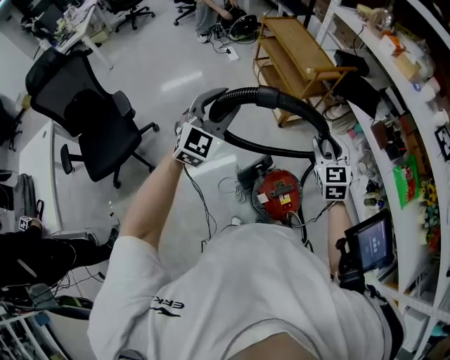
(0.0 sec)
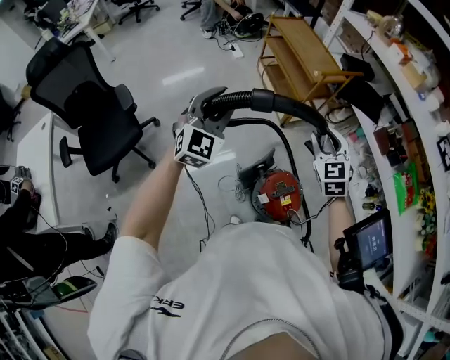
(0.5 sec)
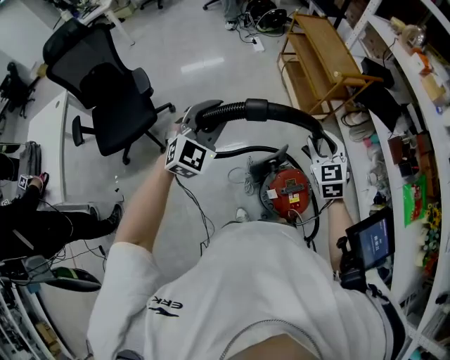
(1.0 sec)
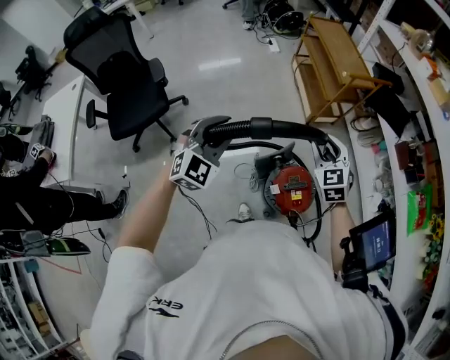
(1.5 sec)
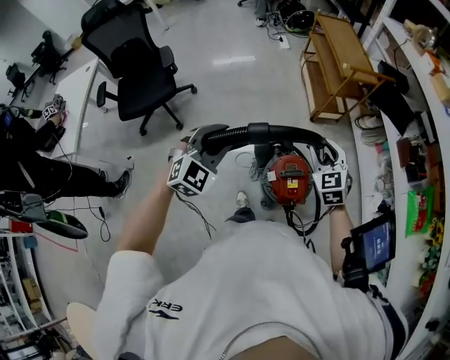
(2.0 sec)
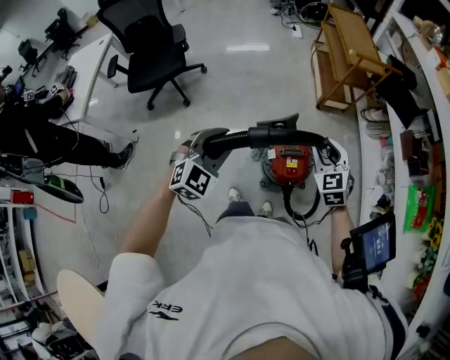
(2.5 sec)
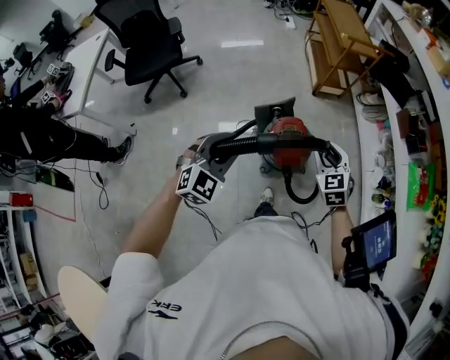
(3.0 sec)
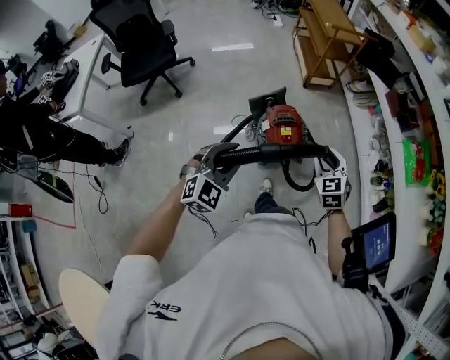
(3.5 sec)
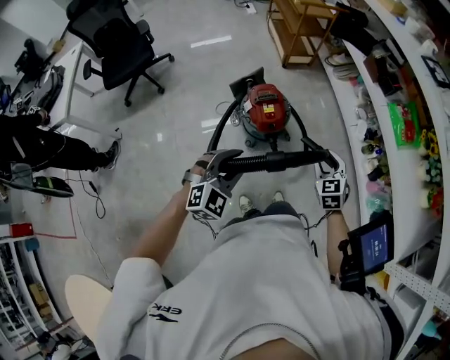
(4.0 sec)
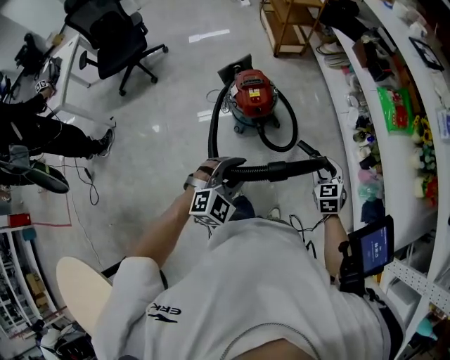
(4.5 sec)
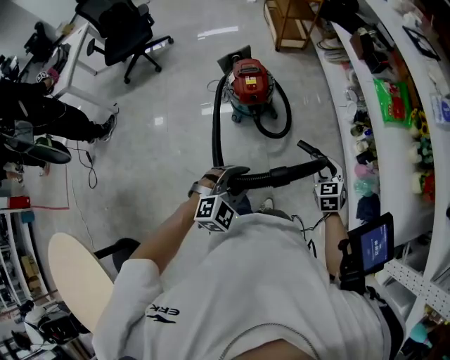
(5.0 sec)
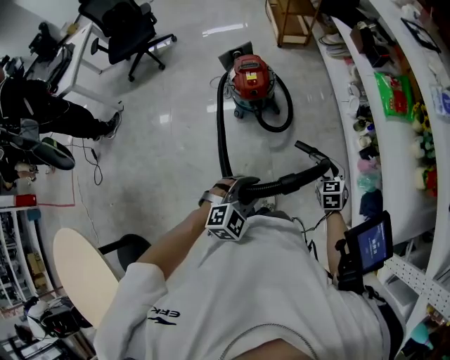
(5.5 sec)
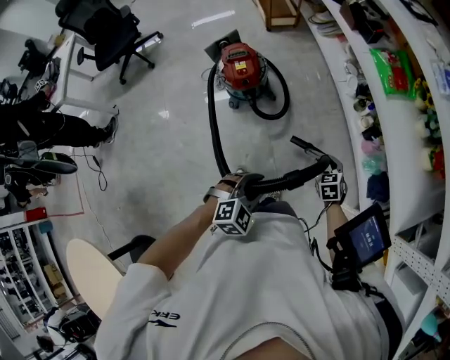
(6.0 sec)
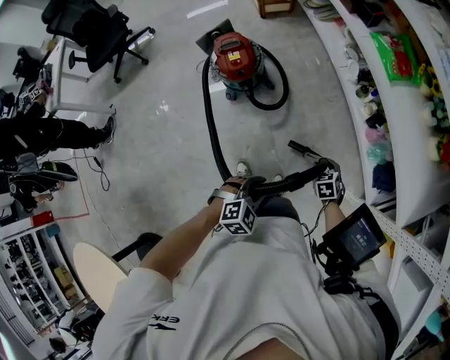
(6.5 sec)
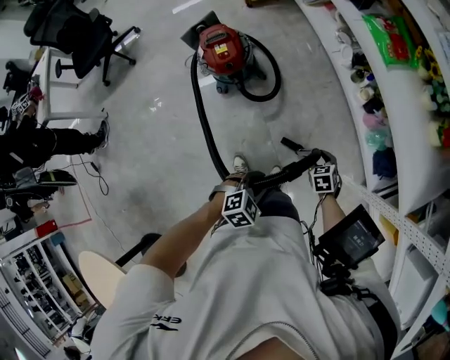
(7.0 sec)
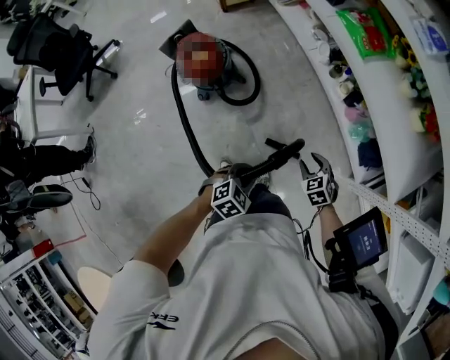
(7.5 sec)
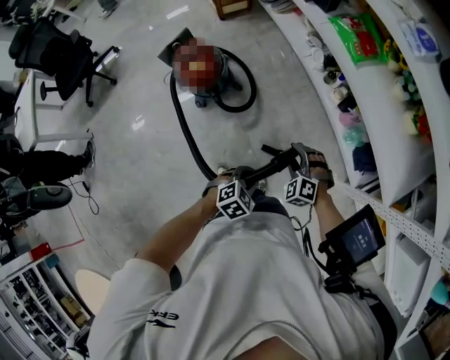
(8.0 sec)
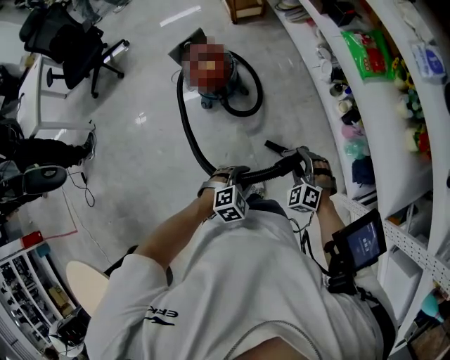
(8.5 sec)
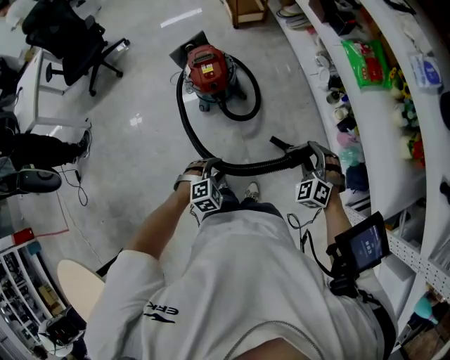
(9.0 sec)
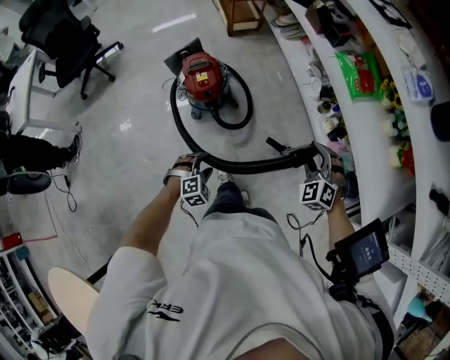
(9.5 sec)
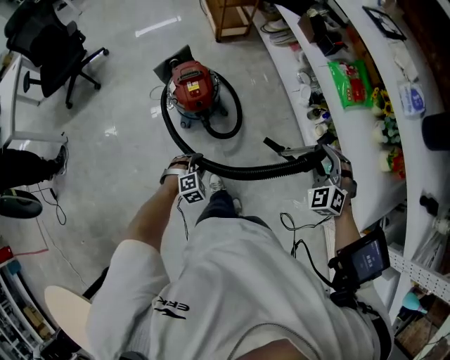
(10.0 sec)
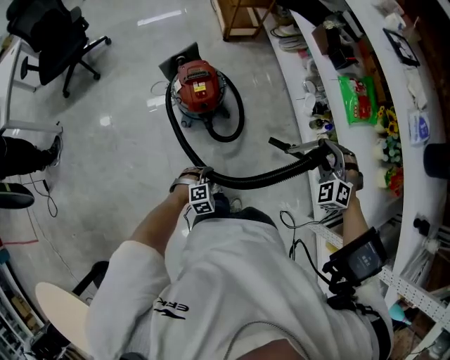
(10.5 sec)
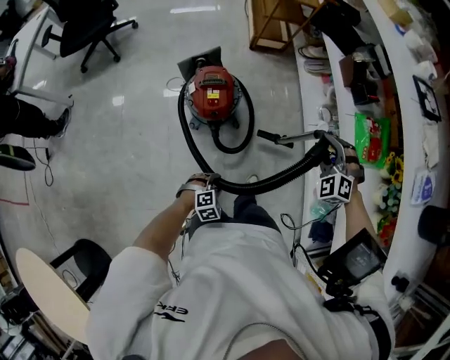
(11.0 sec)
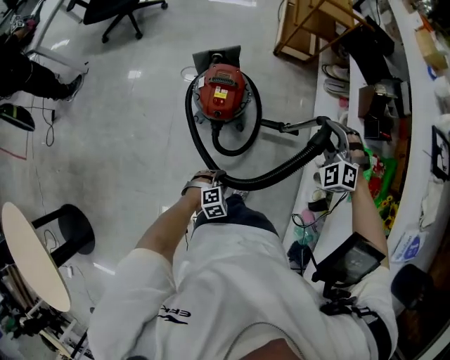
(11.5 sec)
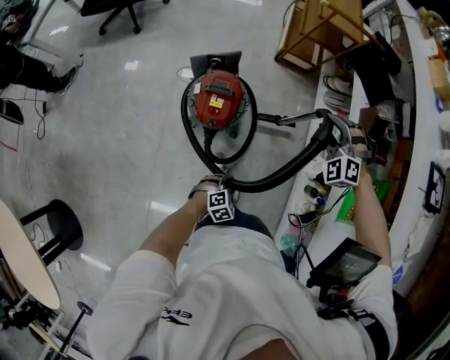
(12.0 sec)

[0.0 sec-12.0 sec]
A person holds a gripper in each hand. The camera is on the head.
0.0 sec to 2.0 sec: The right gripper moves backward and downward, roughly 10 cm, and swivels roughly 20 degrees; the left gripper heads backward, covering roughly 20 cm, and swivels roughly 20 degrees.
2.0 sec to 4.0 sec: Both grippers are carried backward and to the right, roughly 40 cm.
4.0 sec to 6.0 sec: The left gripper goes approximately 35 cm to the right and backward, and rotates approximately 20 degrees, while the right gripper is displaced to the right, downward and backward by about 35 cm.
6.0 sec to 8.0 sec: The right gripper reaches about 10 cm downward, then returns, and twists roughly 40 degrees counterclockwise, seen from behind. Meanwhile the left gripper shifts roughly 10 cm downward, and changes its angle by approximately 20 degrees.
8.0 sec to 10.0 sec: The left gripper moves to the left and forward, some 25 cm, and swivels about 20 degrees. The right gripper moves upward and forward, approximately 20 cm.
10.0 sec to 12.0 sec: The right gripper shifts about 50 cm forward and to the left, and turns by about 50 degrees, while the left gripper heads forward and to the right, covering about 25 cm, and swivels roughly 40 degrees.

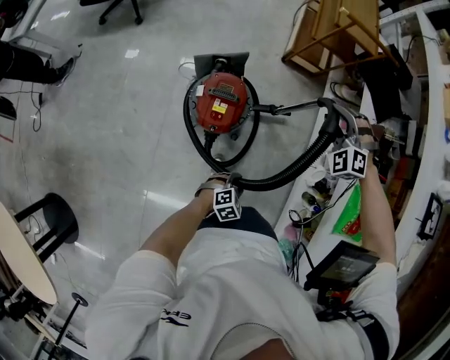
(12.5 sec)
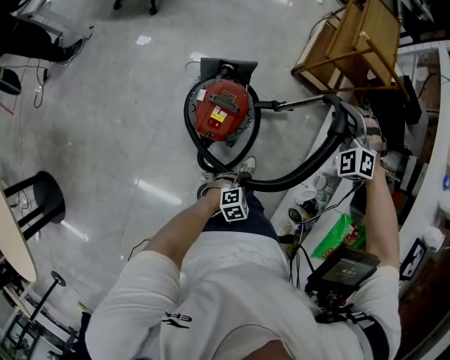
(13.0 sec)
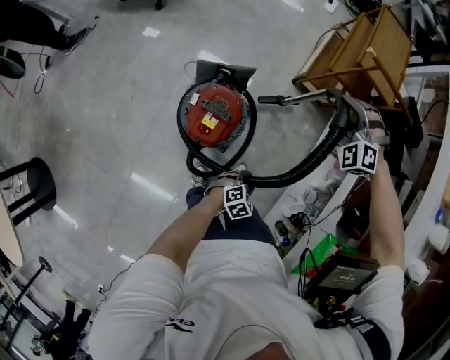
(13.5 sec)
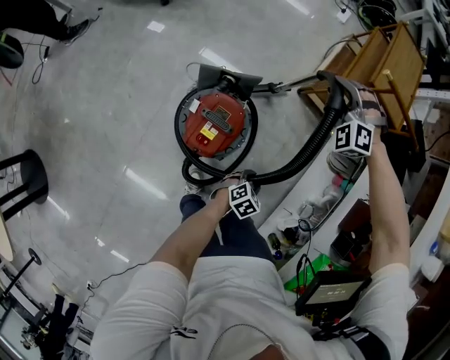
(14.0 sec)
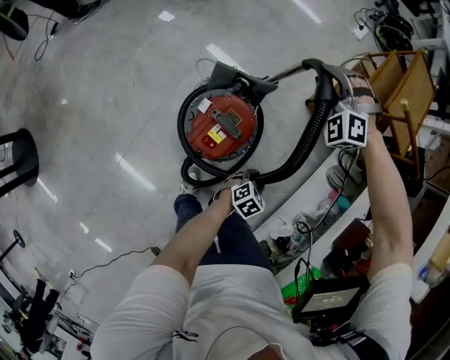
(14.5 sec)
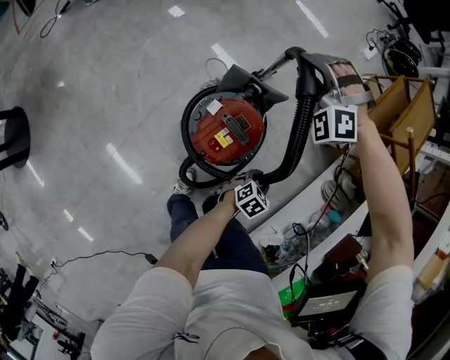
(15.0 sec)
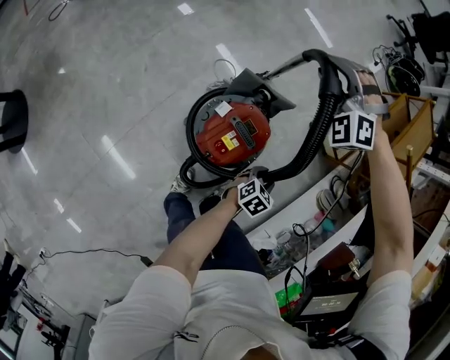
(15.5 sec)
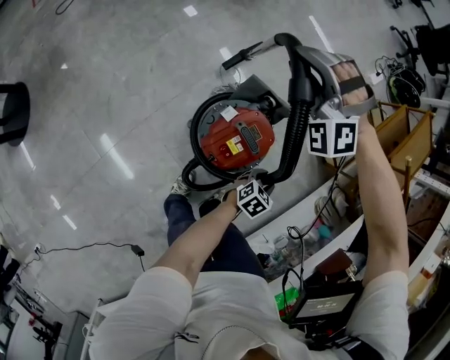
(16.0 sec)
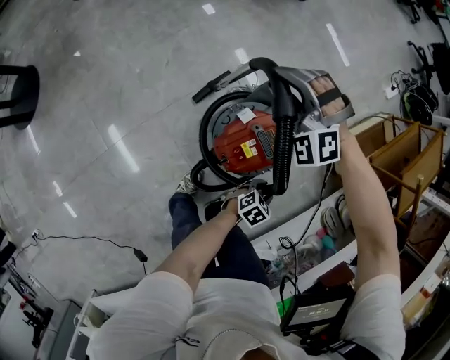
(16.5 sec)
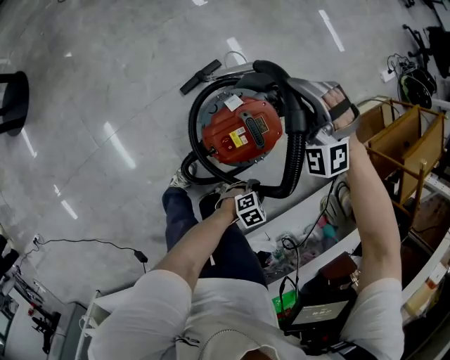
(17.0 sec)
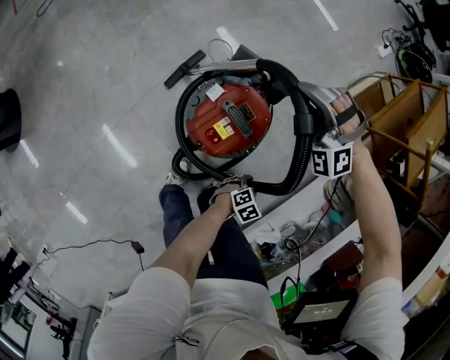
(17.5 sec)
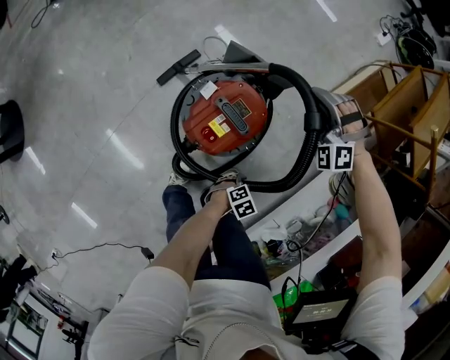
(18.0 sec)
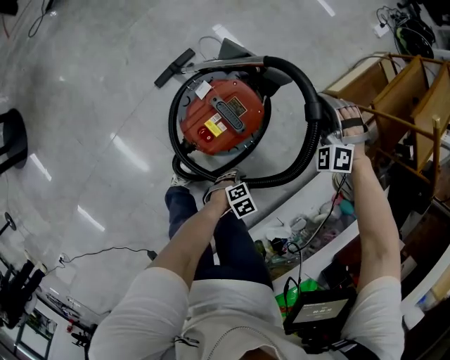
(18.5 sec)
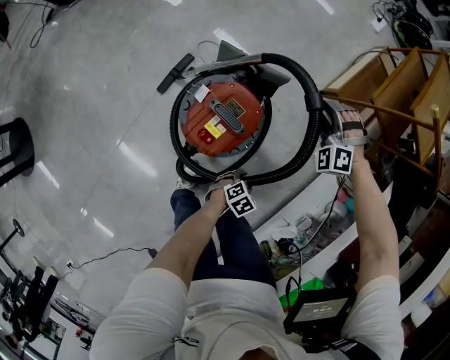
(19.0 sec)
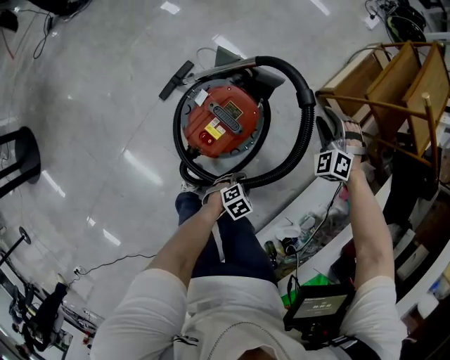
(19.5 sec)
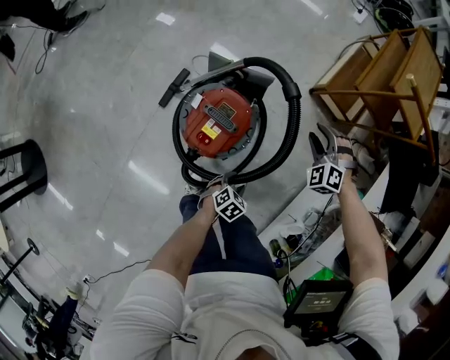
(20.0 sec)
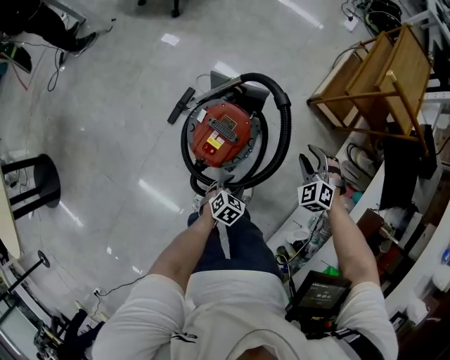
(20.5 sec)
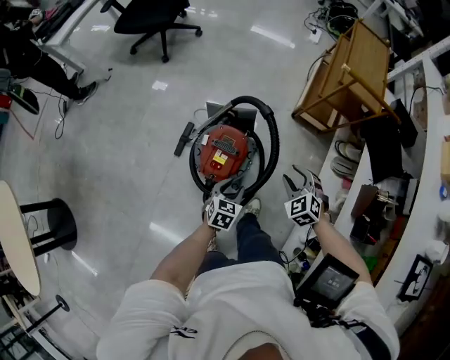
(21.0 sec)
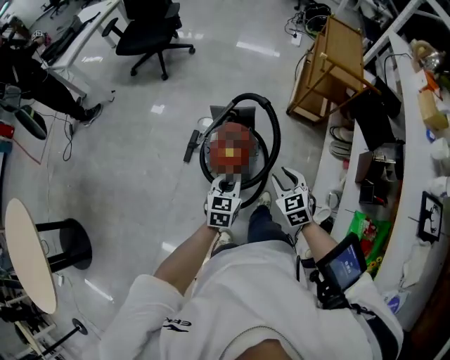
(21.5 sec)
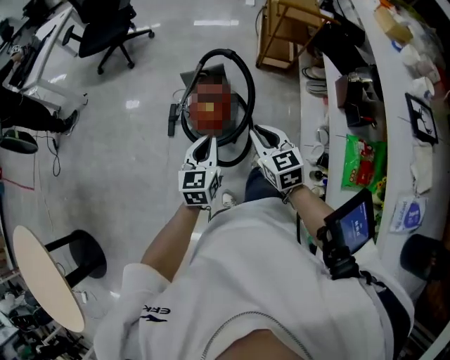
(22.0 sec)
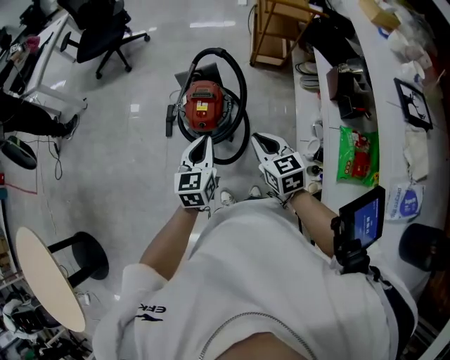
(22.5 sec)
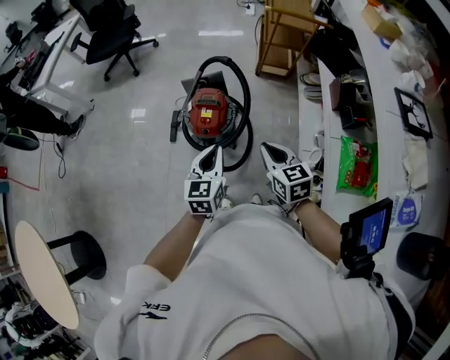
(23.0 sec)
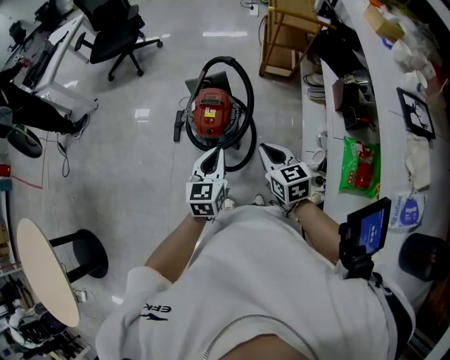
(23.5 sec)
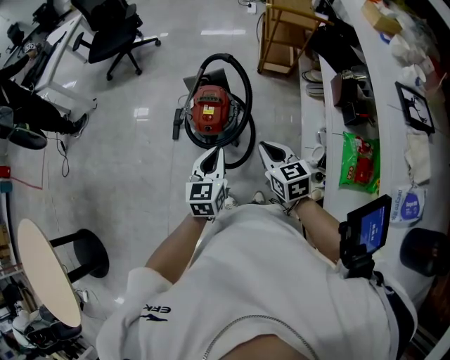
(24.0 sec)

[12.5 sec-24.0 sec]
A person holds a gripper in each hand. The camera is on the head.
12.5 sec to 14.5 sec: The left gripper heads forward, covering about 25 cm, and rotates about 40 degrees, while the right gripper heads to the left and forward, covering some 35 cm, and turns by some 30 degrees.
14.5 sec to 16.5 sec: The left gripper shifts by some 10 cm, and swivels approximately 20 degrees, while the right gripper goes upward and returns, roughly 5 cm each way, and turns by some 40 degrees.
16.5 sec to 18.5 sec: The left gripper changes place by some 20 cm, and rotates some 30 degrees, while the right gripper changes place by approximately 40 cm, and rotates about 30 degrees.
18.5 sec to 20.0 sec: The right gripper moves to the right, some 15 cm, and turns by roughly 30 degrees, while the left gripper travels upward by about 5 cm.
20.0 sec to 22.0 sec: The right gripper travels backward and upward by some 50 cm, twists some 80 degrees clockwise, seen from behind, and closes up. The left gripper shifts approximately 50 cm upward, angles its fingers upward, by about 40 degrees, and closes up.
22.0 sec to 24.0 sec: The two grippers go some 10 cm backward.

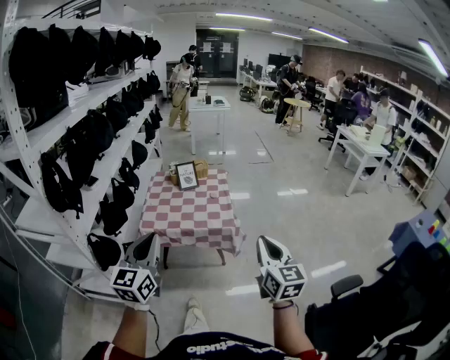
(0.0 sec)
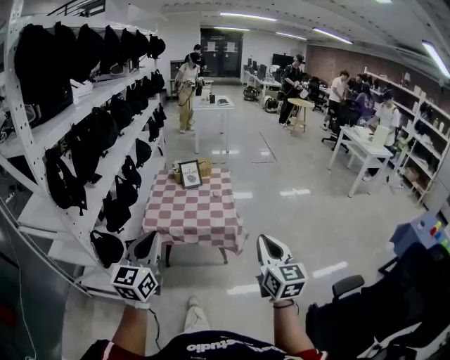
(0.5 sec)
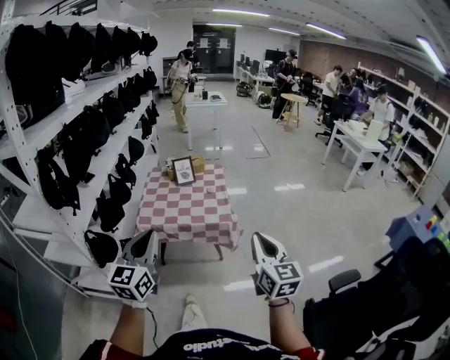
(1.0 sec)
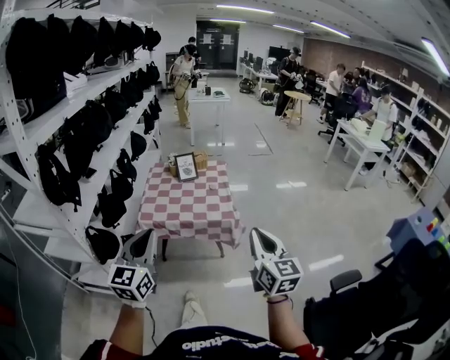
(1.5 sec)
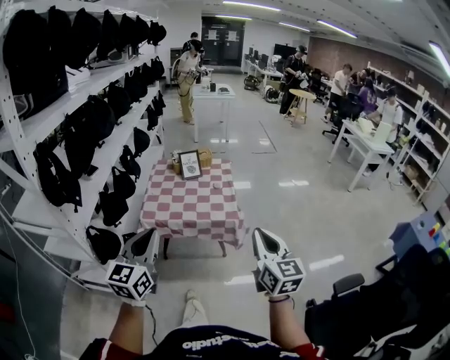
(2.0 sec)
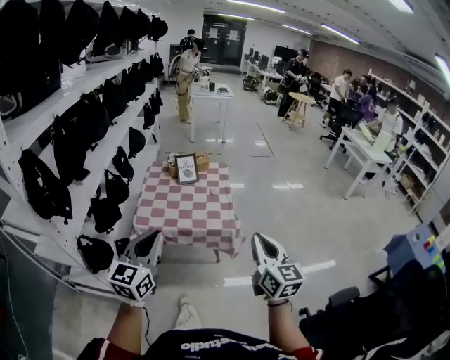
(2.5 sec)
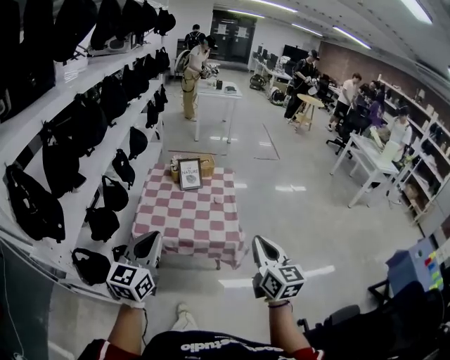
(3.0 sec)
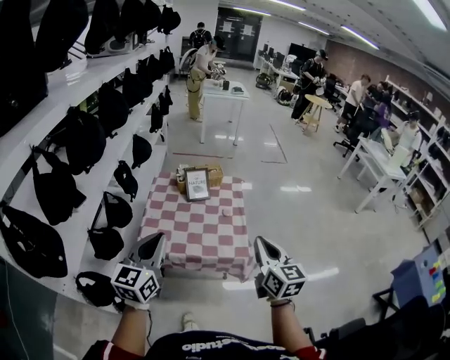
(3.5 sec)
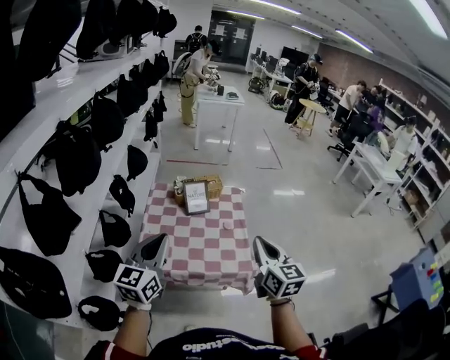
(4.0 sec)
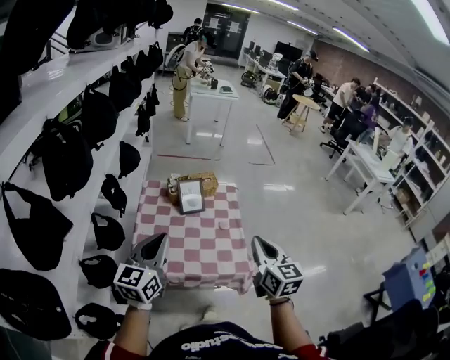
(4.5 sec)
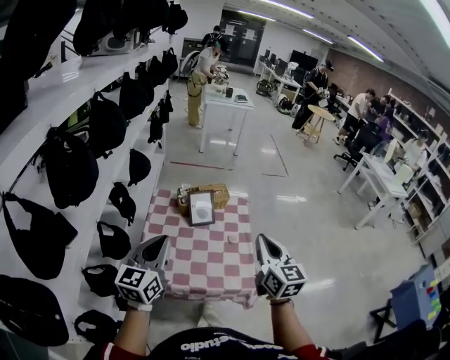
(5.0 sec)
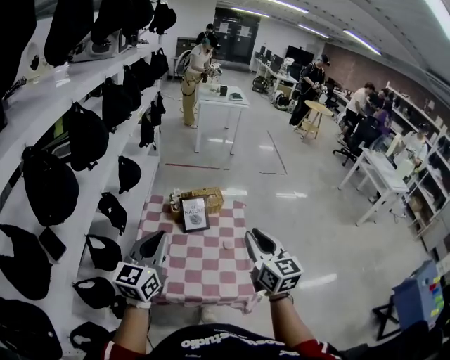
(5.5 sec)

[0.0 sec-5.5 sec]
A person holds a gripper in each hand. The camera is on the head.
0.0 sec to 2.0 sec: The grippers make only small movements.
2.0 sec to 3.5 sec: Both grippers travel together forward, about 25 cm.
3.5 sec to 5.5 sec: Both grippers travel together forward, about 20 cm.
